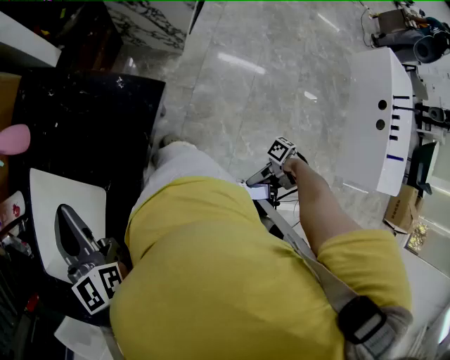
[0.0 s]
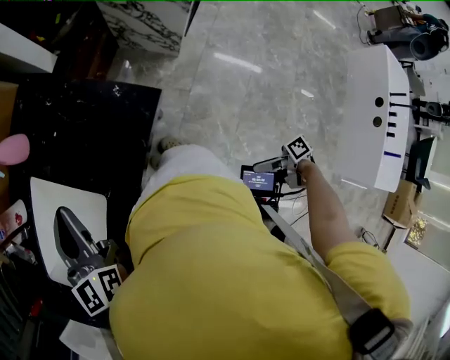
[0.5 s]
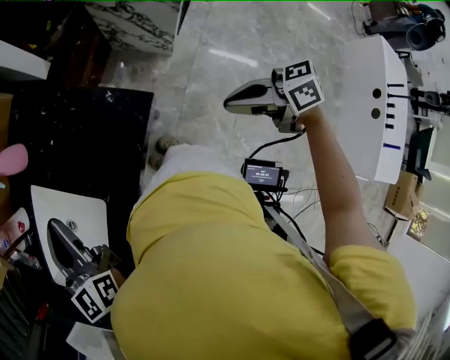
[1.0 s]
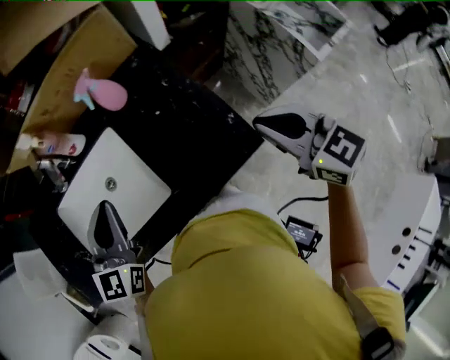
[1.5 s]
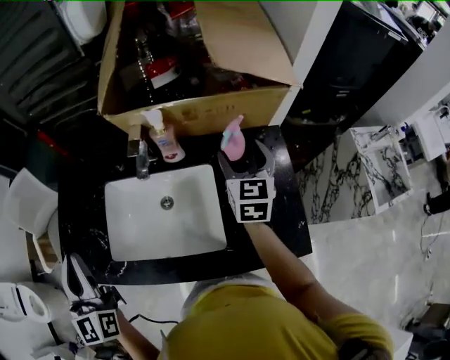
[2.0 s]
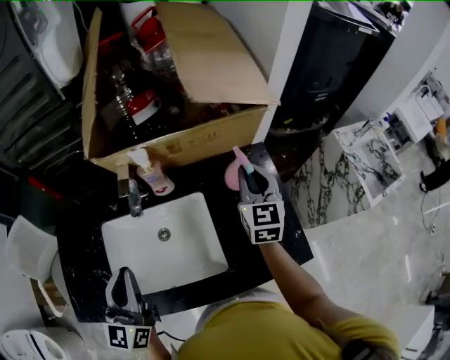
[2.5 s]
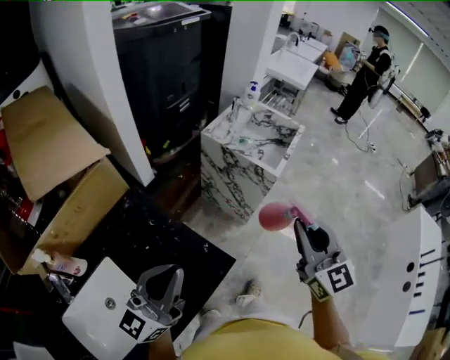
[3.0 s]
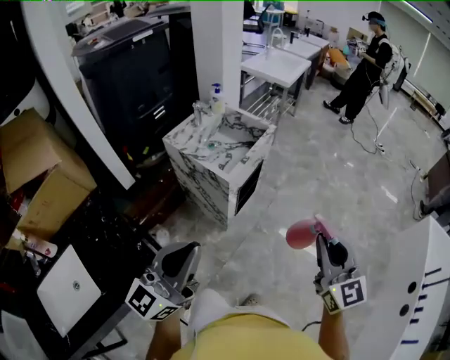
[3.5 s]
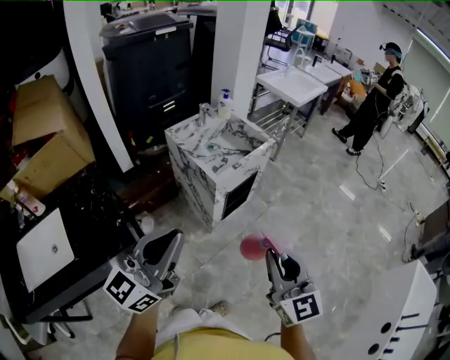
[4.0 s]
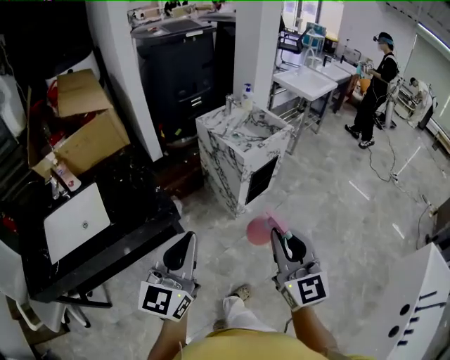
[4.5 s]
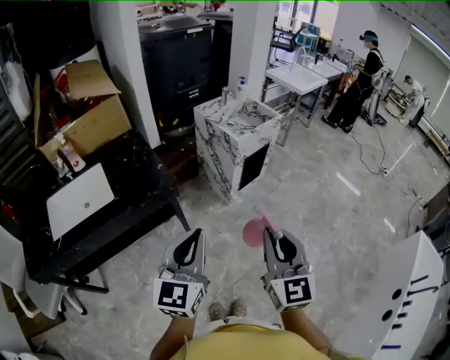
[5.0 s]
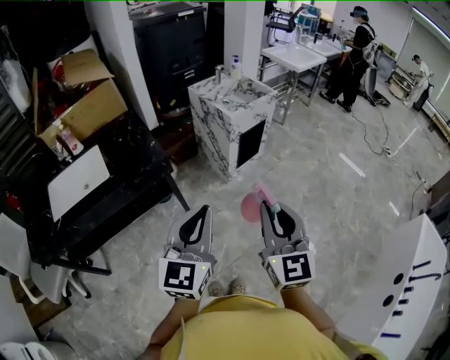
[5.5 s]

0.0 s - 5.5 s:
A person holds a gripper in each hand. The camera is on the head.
0.0 s - 2.0 s: The left gripper is displaced to the left by roughly 35 cm, and rotates approximately 70 degrees. Meanwhile the right gripper is displaced forward and upward by approximately 80 cm, twists roughly 110 degrees counterclockwise, seen from behind, and closes, then opens again.
2.0 s - 3.5 s: Both grippers are carried some 80 cm. The right gripper turns by about 40 degrees, and closes. Meanwhile the left gripper swivels roughly 100 degrees.
3.5 s - 5.5 s: Both grippers travel together backward, about 30 cm. The left gripper turns by approximately 40 degrees.

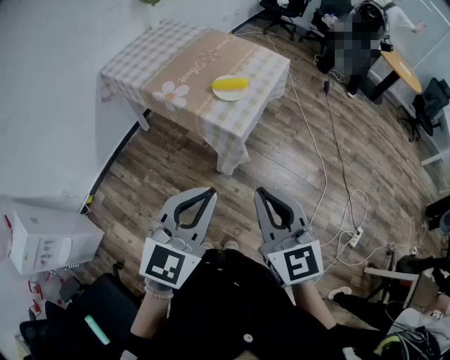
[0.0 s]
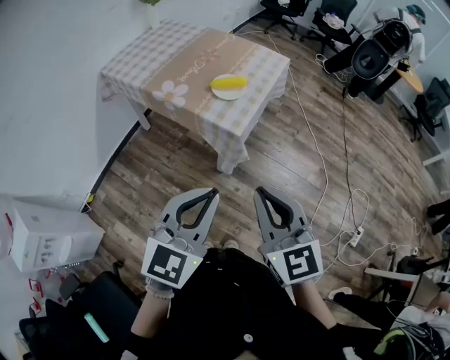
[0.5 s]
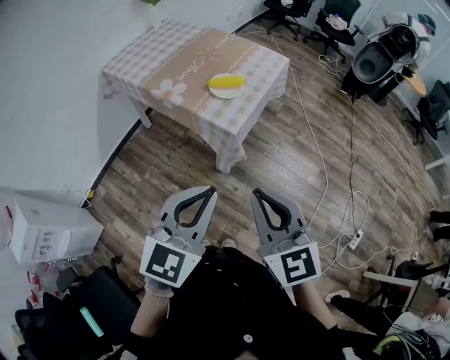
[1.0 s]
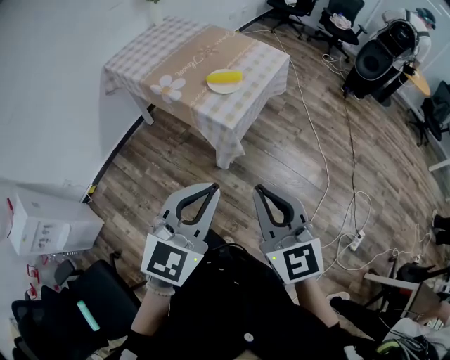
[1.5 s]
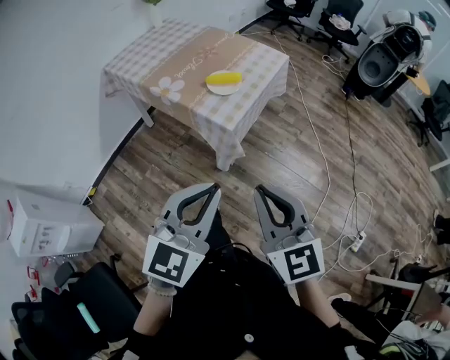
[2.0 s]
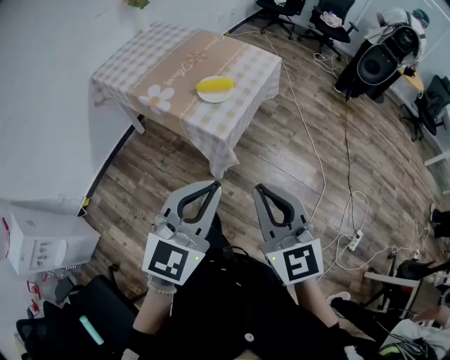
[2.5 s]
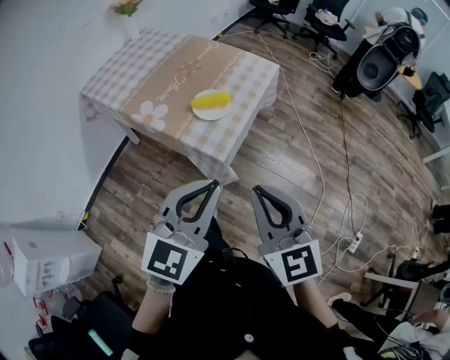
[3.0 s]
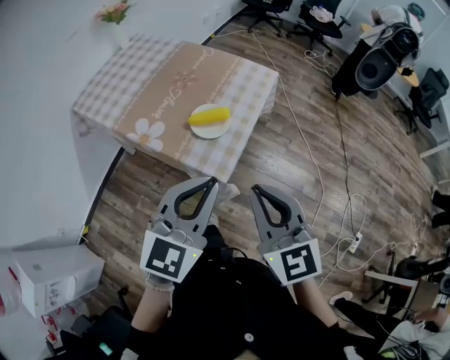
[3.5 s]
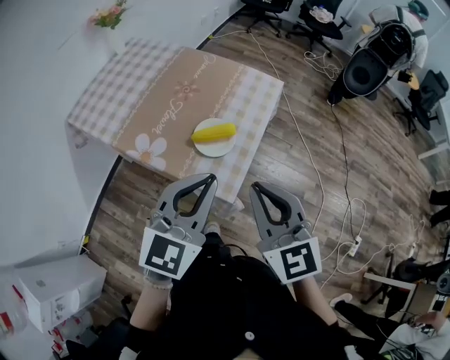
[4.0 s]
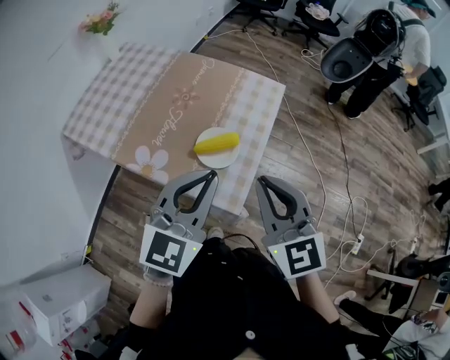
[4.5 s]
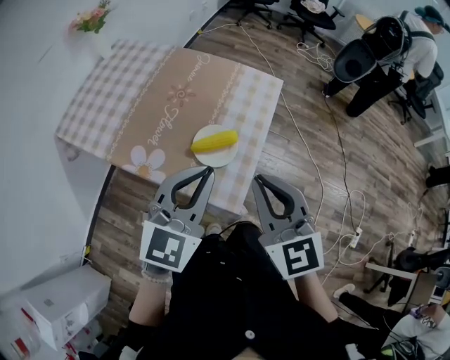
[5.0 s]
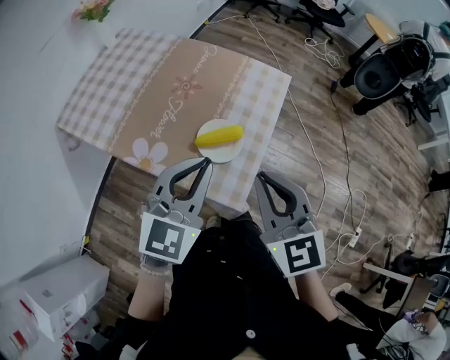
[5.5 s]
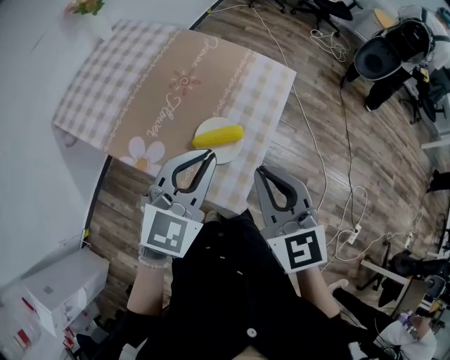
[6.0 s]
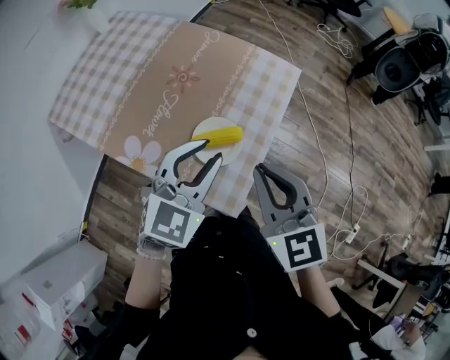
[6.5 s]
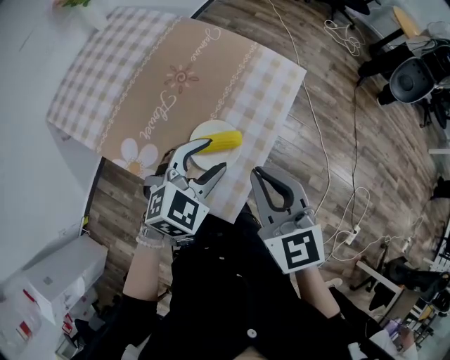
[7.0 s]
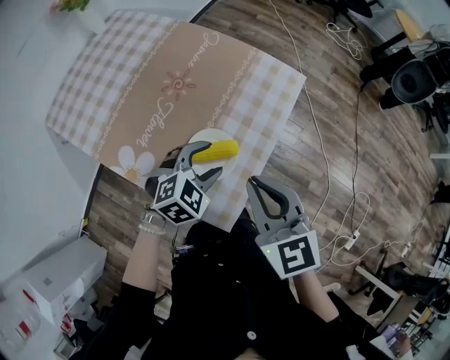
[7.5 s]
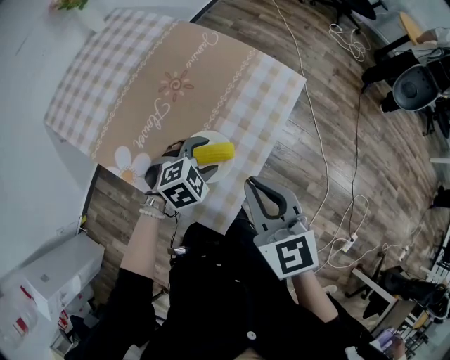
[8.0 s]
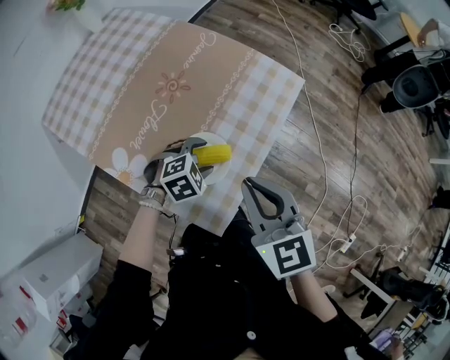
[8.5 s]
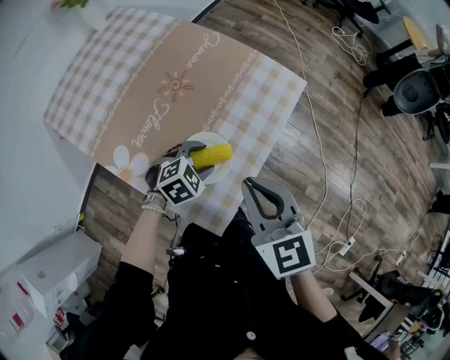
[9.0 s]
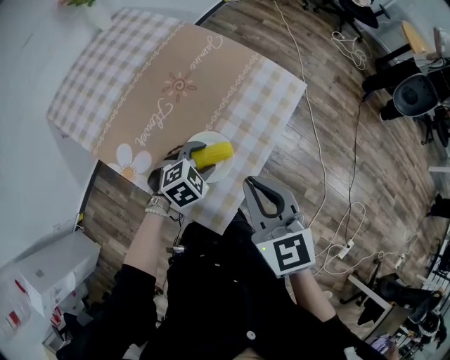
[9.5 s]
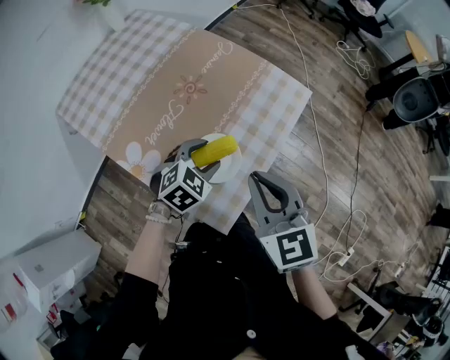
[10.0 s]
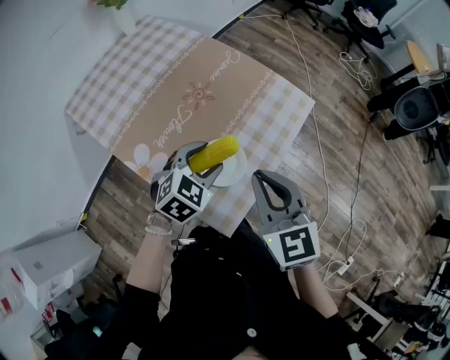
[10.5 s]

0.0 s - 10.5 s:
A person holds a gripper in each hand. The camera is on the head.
0.0 s - 2.0 s: Both grippers move to the right, about 5 cm.
2.0 s - 4.0 s: The grippers both shift forward by roughly 30 cm.
4.0 s - 6.5 s: The right gripper heads forward, covering approximately 15 cm; the left gripper goes about 20 cm forward and downward.
6.5 s - 8.5 s: The right gripper heads forward, covering approximately 5 cm. Meanwhile the left gripper shifts approximately 25 cm downward, tips its fingers downward by roughly 40 degrees, and opens.
8.5 s - 10.5 s: The left gripper goes approximately 10 cm upward, and rotates roughly 30 degrees.

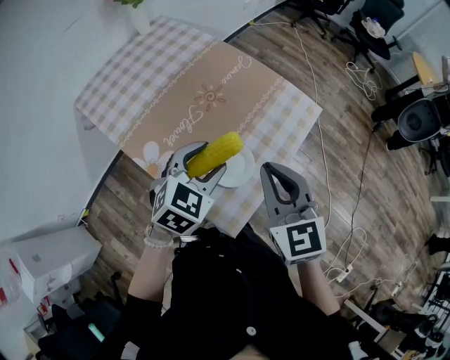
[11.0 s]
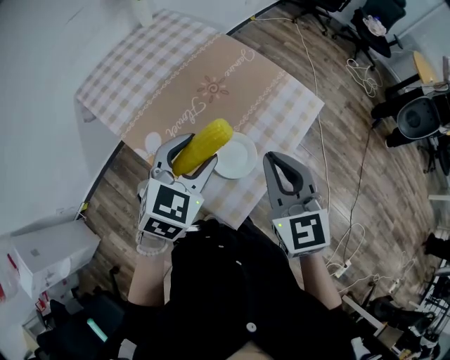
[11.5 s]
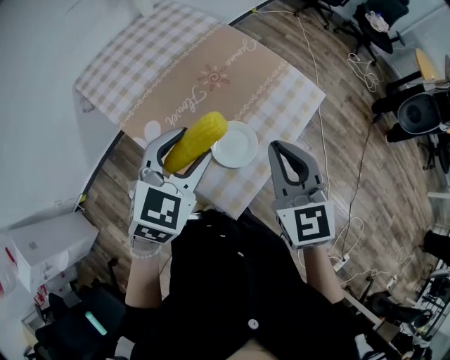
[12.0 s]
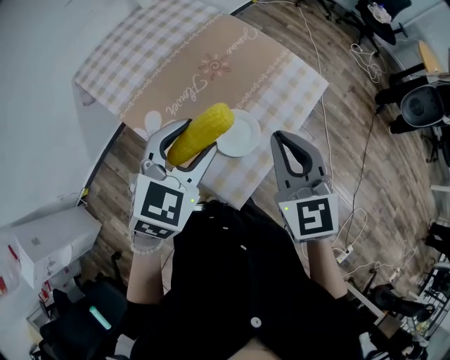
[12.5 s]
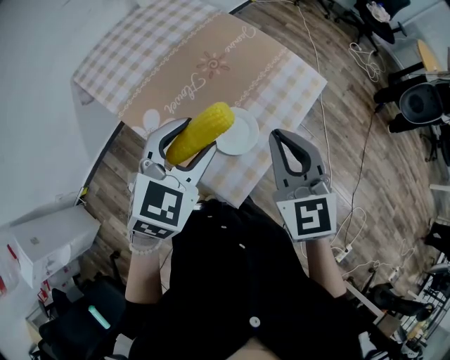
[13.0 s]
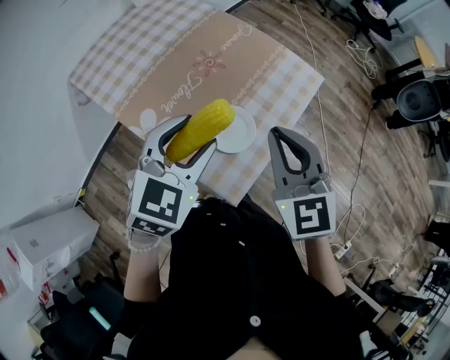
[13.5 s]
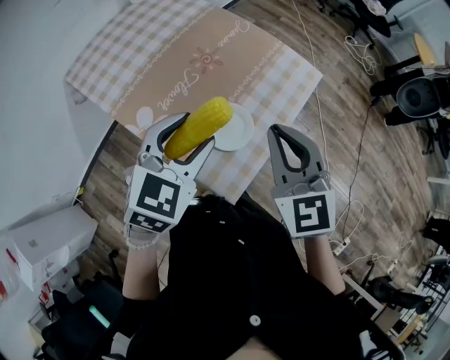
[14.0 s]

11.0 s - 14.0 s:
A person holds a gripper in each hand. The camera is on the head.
11.0 s - 12.5 s: The left gripper shifts some 5 cm upward.
12.5 s - 14.0 s: The grippers move only a little.

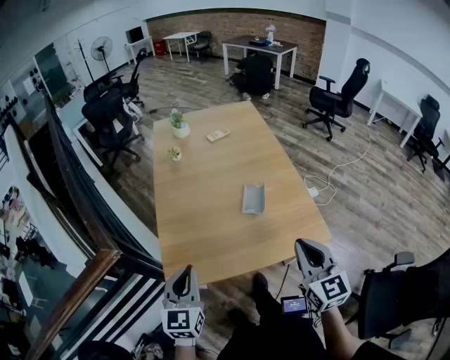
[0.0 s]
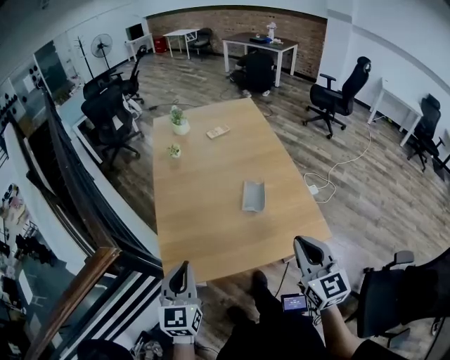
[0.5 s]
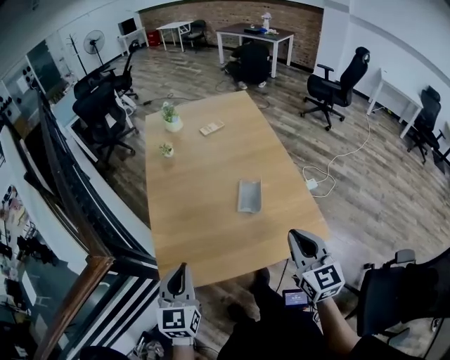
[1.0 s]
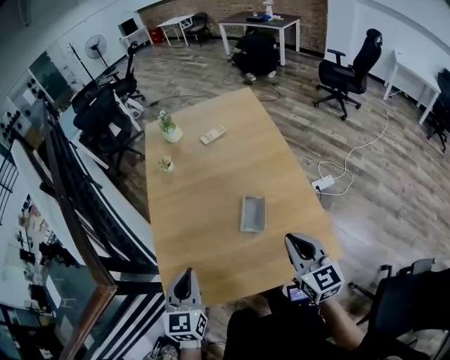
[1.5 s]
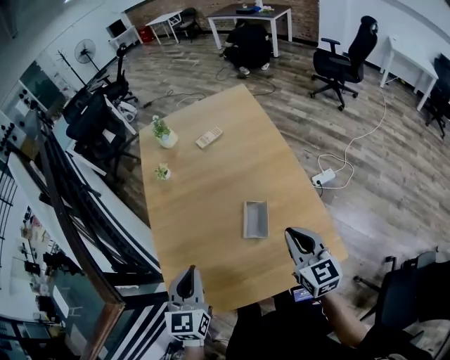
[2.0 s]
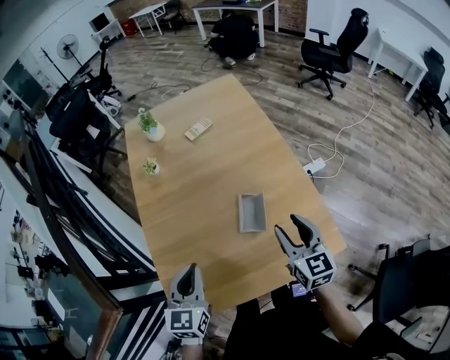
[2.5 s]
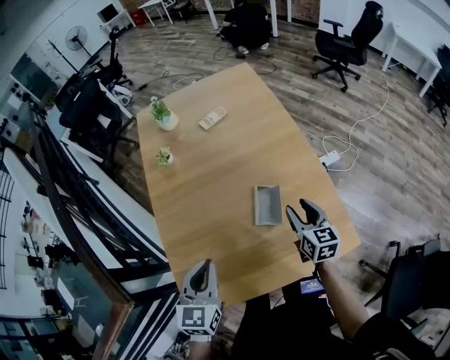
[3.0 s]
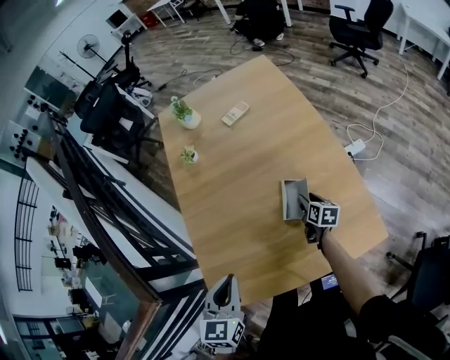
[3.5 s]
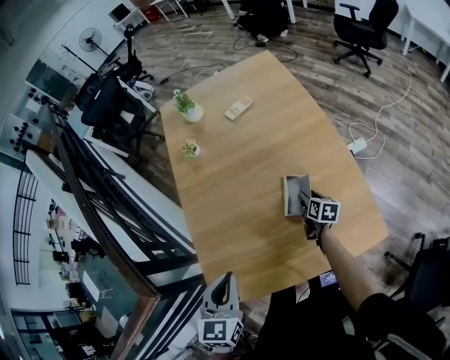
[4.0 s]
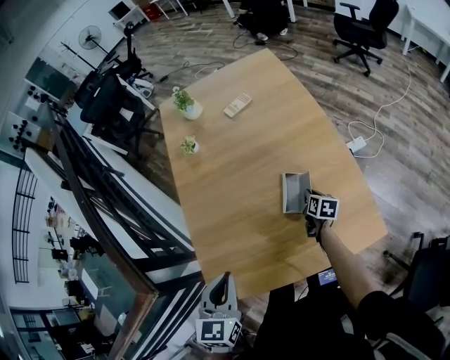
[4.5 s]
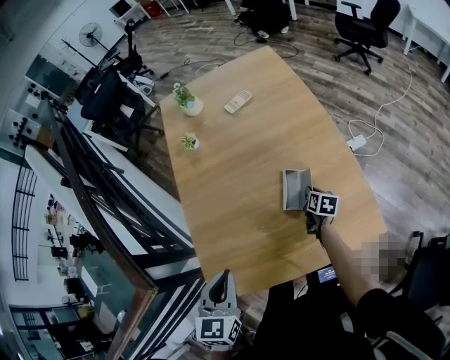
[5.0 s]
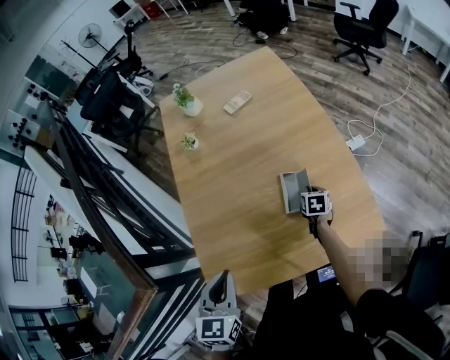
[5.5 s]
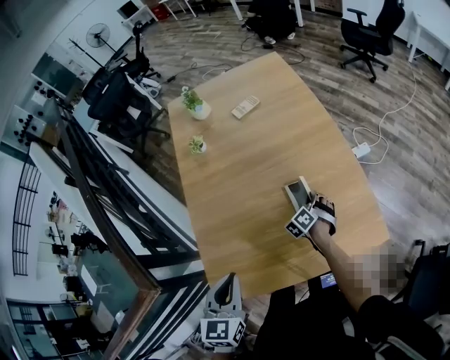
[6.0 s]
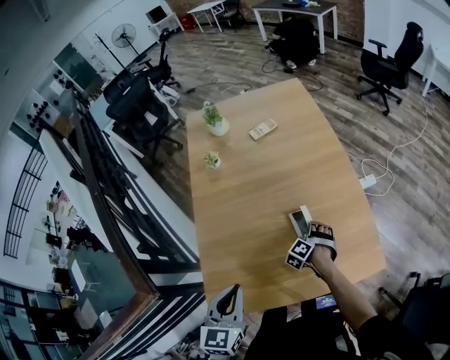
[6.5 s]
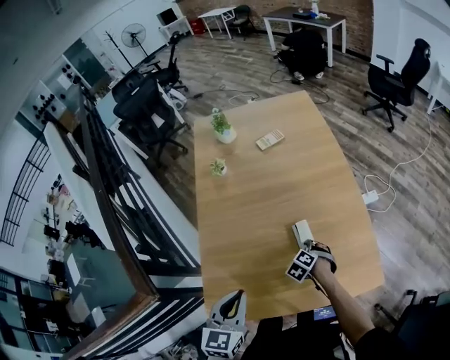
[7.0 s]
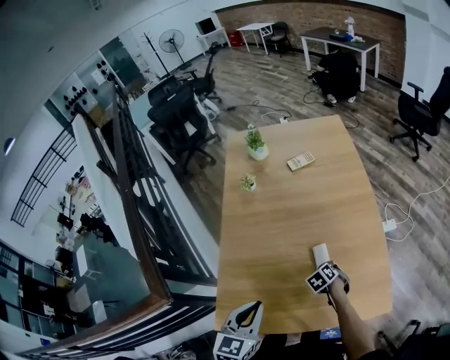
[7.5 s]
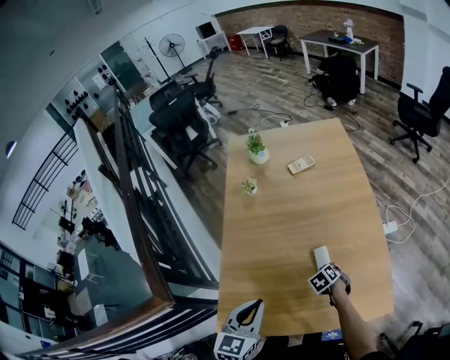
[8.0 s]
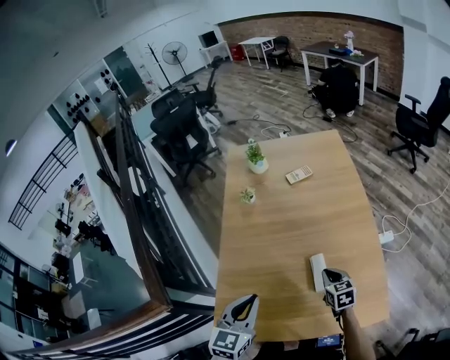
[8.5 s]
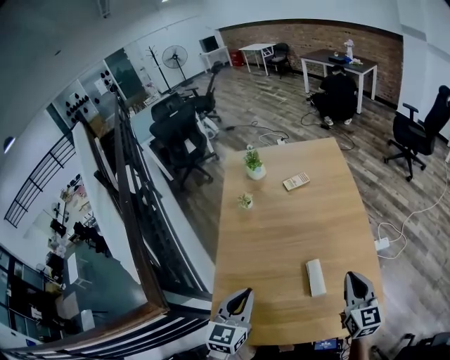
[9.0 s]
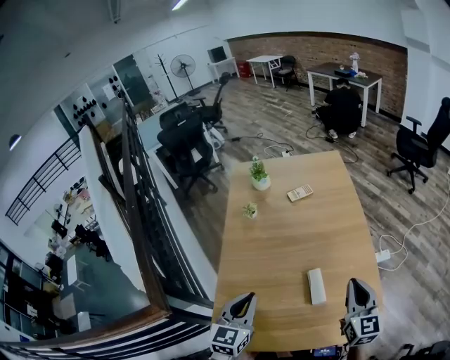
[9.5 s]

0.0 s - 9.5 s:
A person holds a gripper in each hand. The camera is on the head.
0.0 s - 2.0 s: The left gripper travels forward and to the right by roughly 20 cm; the right gripper heads forward, covering about 20 cm.
2.0 s - 4.0 s: The right gripper travels downward and forward by roughly 30 cm, rotates roughly 40 degrees, and opens up. Meanwhile the left gripper changes place by approximately 5 cm.
4.0 s - 5.5 s: The right gripper rotates about 20 degrees, and closes.
5.5 s - 7.5 s: The right gripper shifts about 10 cm to the left and backward, twists approximately 50 degrees counterclockwise, seen from behind, and opens and closes again.
7.5 s - 9.5 s: The right gripper shifts some 35 cm upward, and angles its fingers upward, by roughly 60 degrees. Meanwhile the left gripper is displaced forward by some 5 cm.
